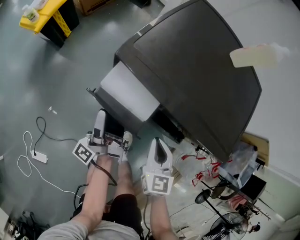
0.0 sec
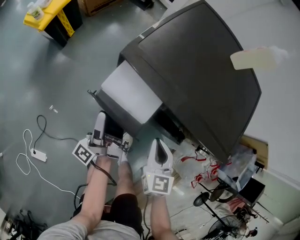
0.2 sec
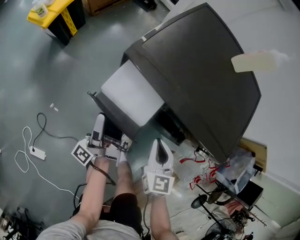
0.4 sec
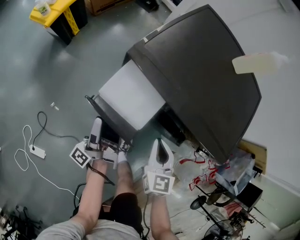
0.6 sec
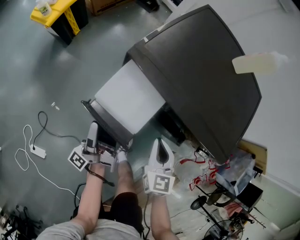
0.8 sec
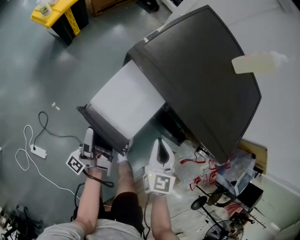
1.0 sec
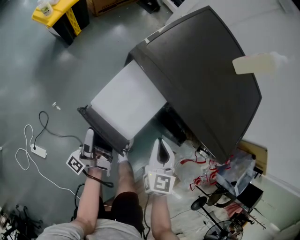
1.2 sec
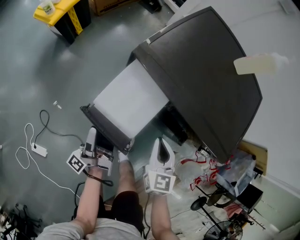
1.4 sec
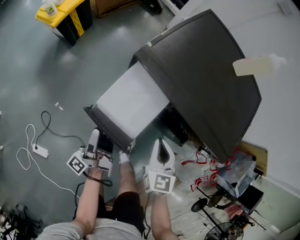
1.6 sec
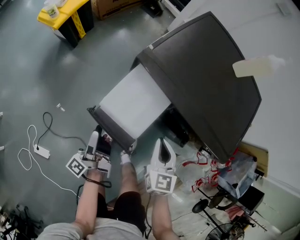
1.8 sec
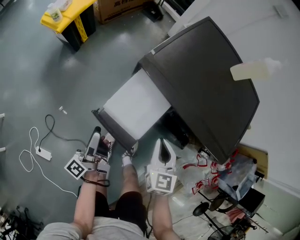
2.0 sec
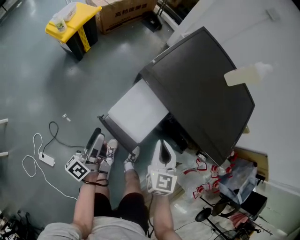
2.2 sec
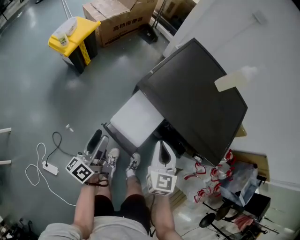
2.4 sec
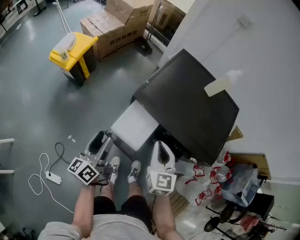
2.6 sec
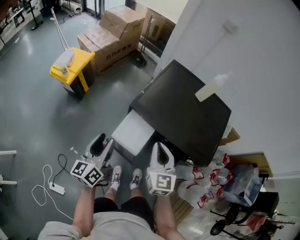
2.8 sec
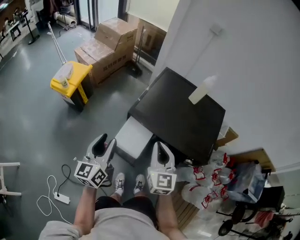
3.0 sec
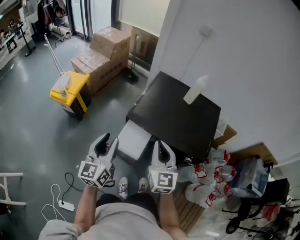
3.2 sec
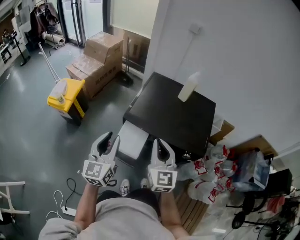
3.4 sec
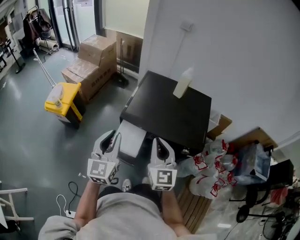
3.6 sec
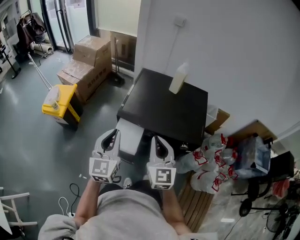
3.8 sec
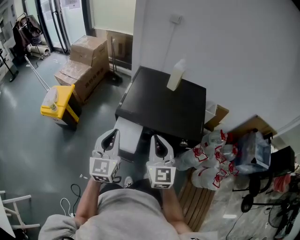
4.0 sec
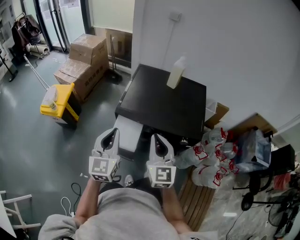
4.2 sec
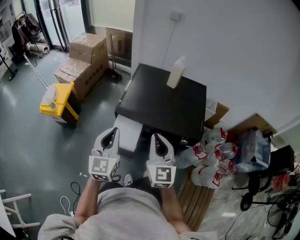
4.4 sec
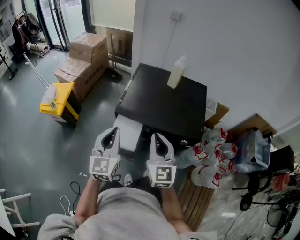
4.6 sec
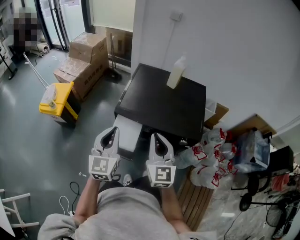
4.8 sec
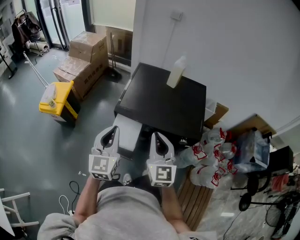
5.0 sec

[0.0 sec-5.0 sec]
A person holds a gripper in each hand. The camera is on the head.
0.0 sec to 1.6 sec: The left gripper moves backward and to the left, approximately 10 cm.
1.6 sec to 3.4 sec: The grippers both shift upward by some 30 cm. The left gripper twists approximately 80 degrees clockwise, seen from behind, and closes up. Meanwhile the right gripper rotates some 30 degrees.
3.4 sec to 5.0 sec: There are only small adjustments of the grippers.

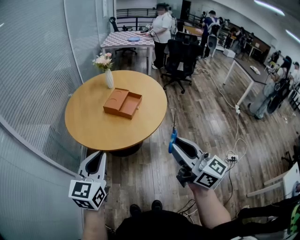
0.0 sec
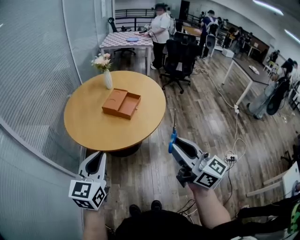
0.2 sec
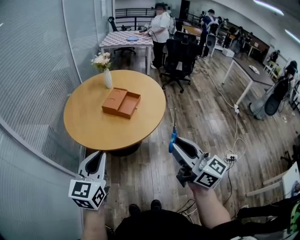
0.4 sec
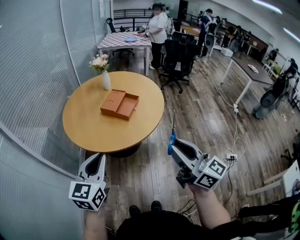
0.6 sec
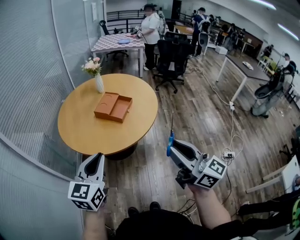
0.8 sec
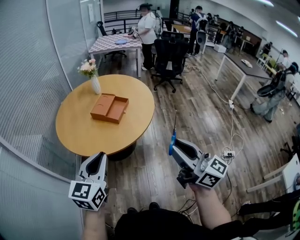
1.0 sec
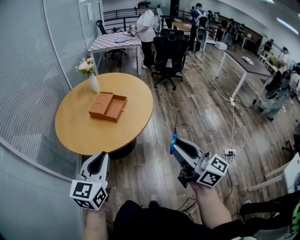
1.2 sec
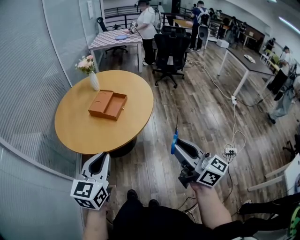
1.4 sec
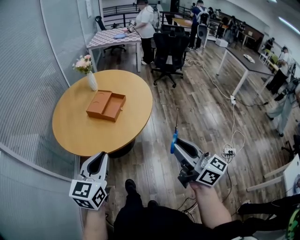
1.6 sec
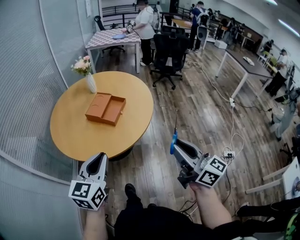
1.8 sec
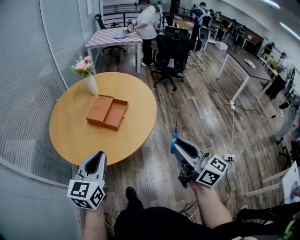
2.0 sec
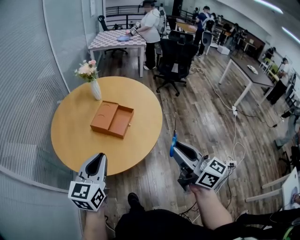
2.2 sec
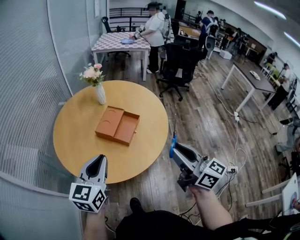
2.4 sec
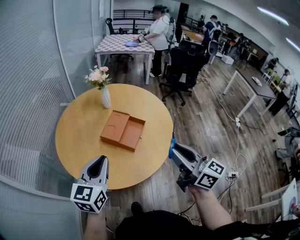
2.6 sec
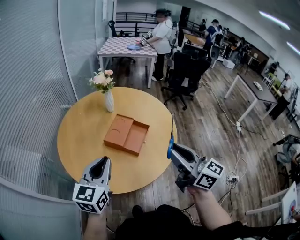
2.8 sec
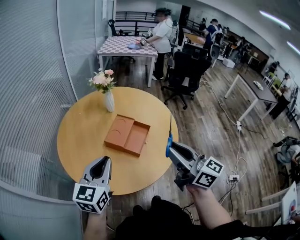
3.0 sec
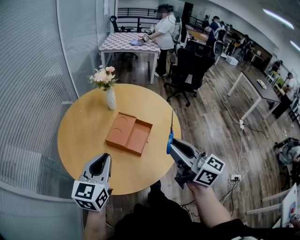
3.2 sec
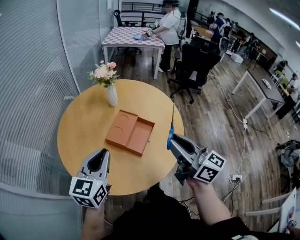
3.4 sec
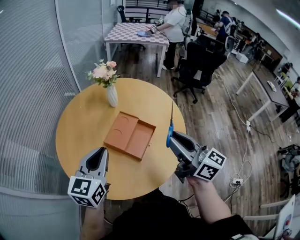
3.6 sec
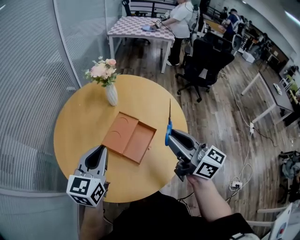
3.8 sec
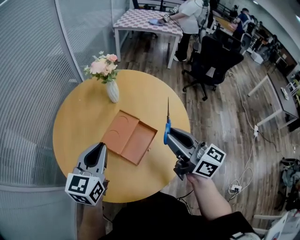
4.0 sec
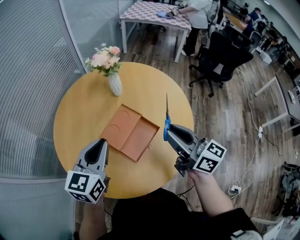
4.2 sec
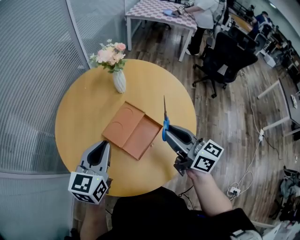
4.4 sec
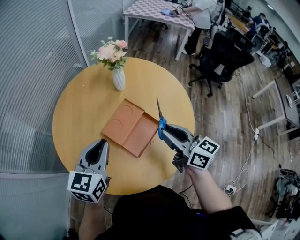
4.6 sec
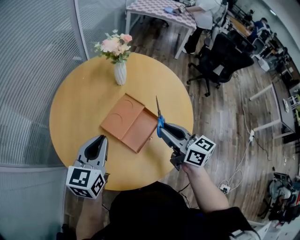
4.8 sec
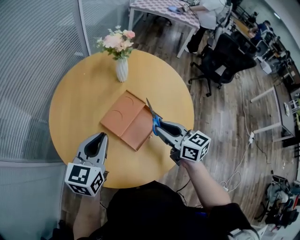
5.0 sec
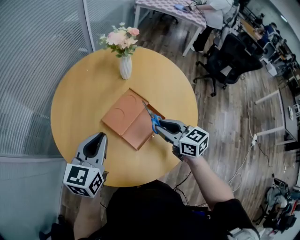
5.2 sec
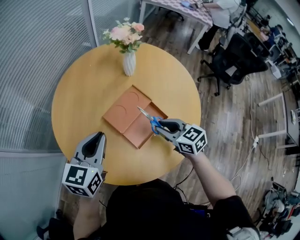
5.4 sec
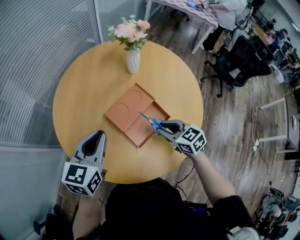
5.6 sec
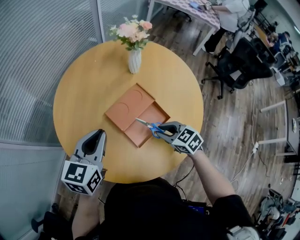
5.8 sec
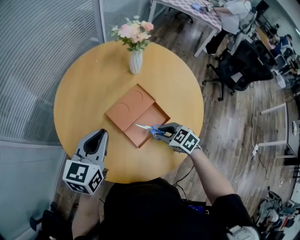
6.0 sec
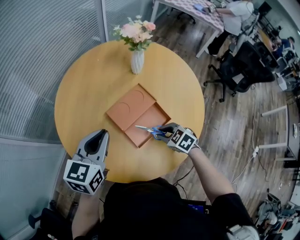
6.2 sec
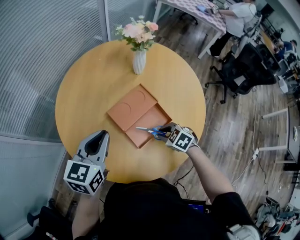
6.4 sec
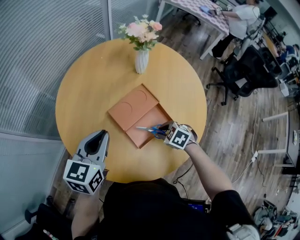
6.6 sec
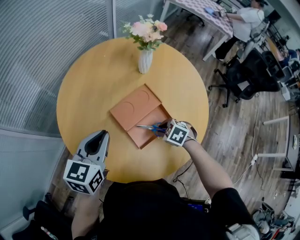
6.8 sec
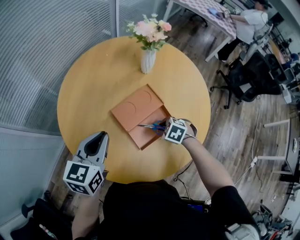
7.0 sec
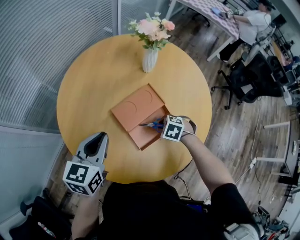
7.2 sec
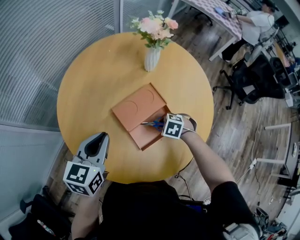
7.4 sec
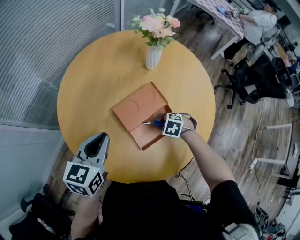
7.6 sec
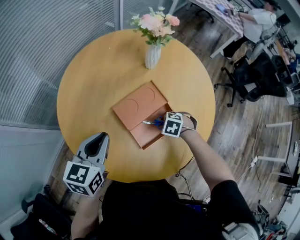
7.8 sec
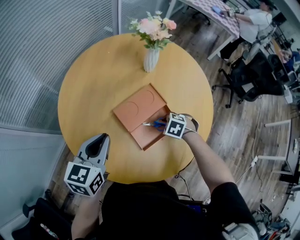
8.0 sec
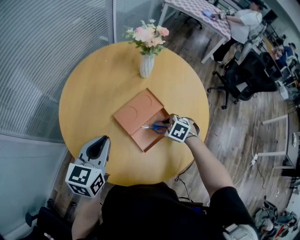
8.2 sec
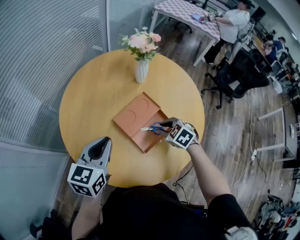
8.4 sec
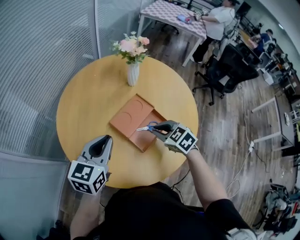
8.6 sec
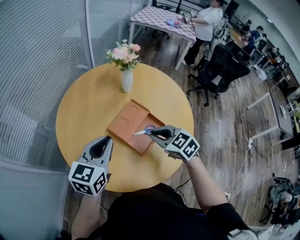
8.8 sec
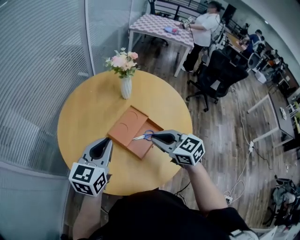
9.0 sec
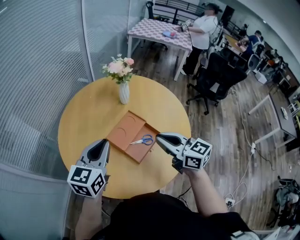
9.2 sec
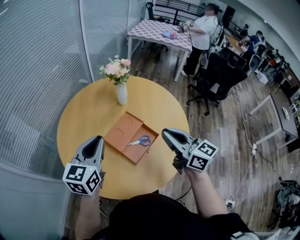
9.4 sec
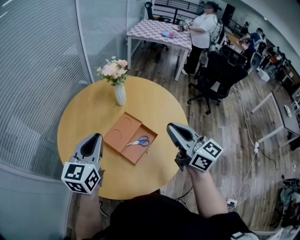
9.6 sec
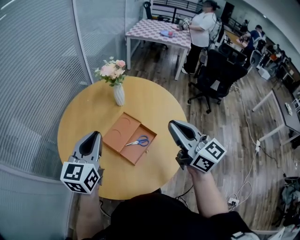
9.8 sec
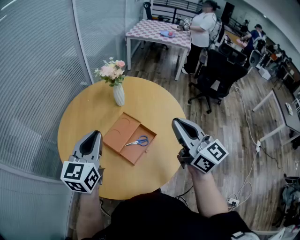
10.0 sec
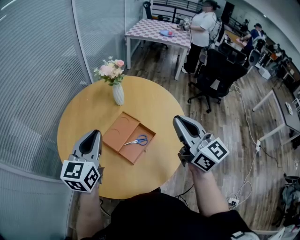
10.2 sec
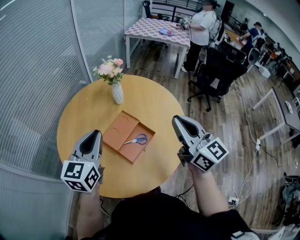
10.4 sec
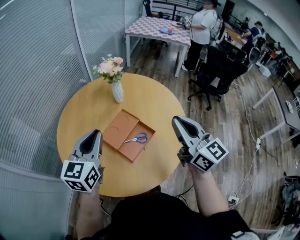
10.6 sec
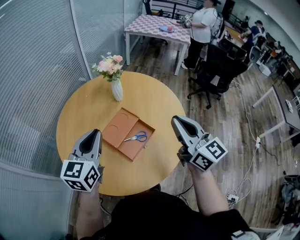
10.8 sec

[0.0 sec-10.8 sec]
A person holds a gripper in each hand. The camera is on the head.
0.0 sec to 1.6 sec: The grippers both shift to the right by about 10 cm.
1.6 sec to 3.0 sec: The grippers both shift forward and to the left by about 30 cm.
3.0 sec to 4.6 sec: The right gripper heads forward and downward, covering about 25 cm, and turns by roughly 20 degrees. The left gripper is displaced forward and to the right by some 15 cm.
4.6 sec to 6.2 sec: The right gripper shifts some 25 cm downward, and angles its fingers downward, by approximately 50 degrees.
6.2 sec to 7.8 sec: The right gripper heads downward, covering approximately 10 cm, and changes its angle by approximately 30 degrees.
7.8 sec to 9.2 sec: The left gripper travels upward by about 10 cm, and swivels some 20 degrees. Meanwhile the right gripper heads upward, covering approximately 35 cm, and tips its fingers upward by some 70 degrees.
9.2 sec to 10.8 sec: The right gripper is displaced to the right and upward by roughly 15 cm, and swivels about 20 degrees, while the left gripper moves about 5 cm.

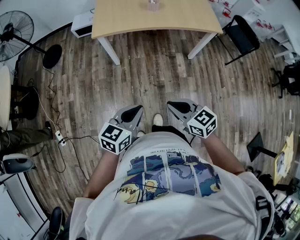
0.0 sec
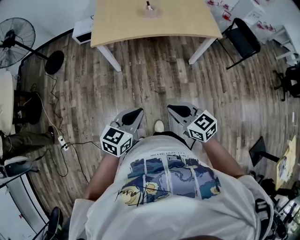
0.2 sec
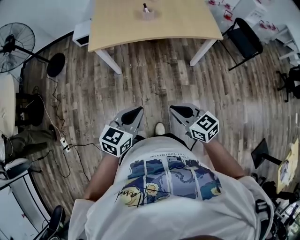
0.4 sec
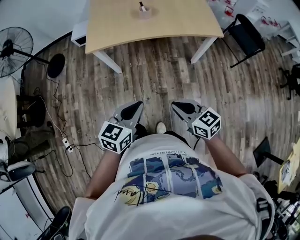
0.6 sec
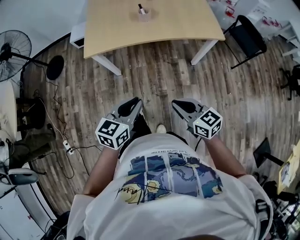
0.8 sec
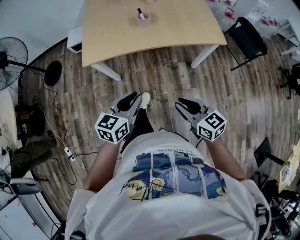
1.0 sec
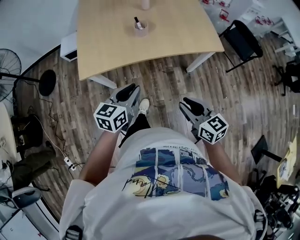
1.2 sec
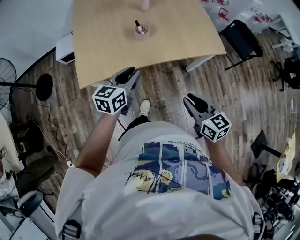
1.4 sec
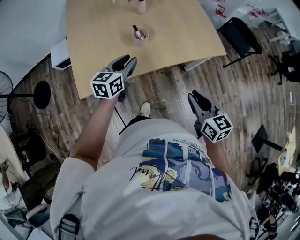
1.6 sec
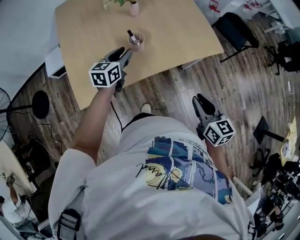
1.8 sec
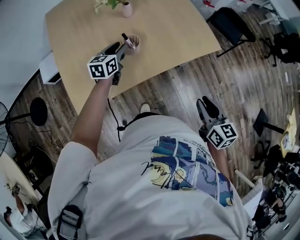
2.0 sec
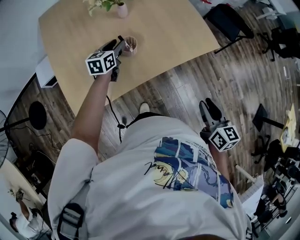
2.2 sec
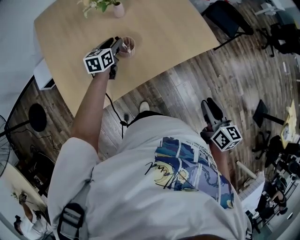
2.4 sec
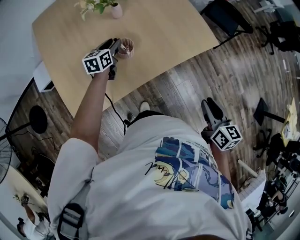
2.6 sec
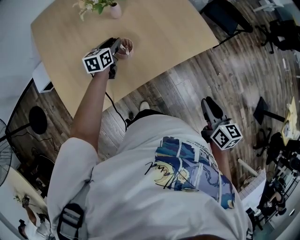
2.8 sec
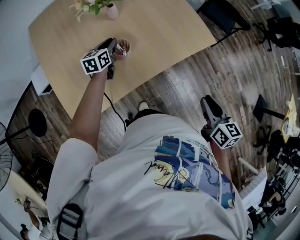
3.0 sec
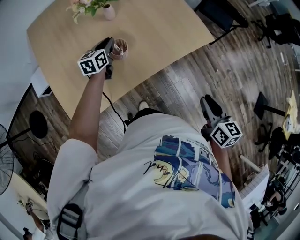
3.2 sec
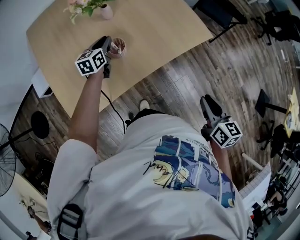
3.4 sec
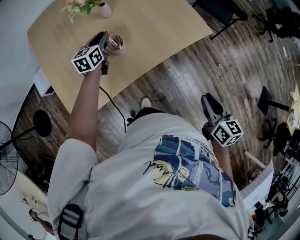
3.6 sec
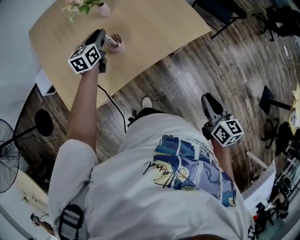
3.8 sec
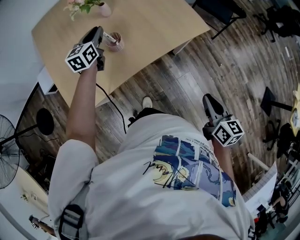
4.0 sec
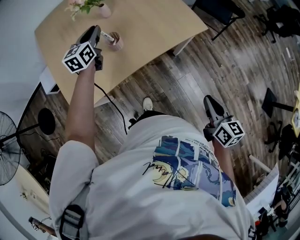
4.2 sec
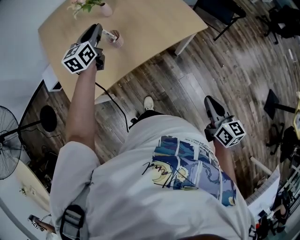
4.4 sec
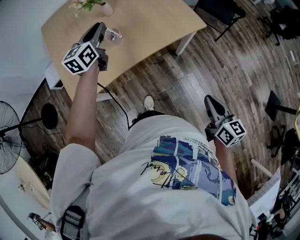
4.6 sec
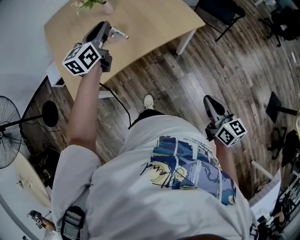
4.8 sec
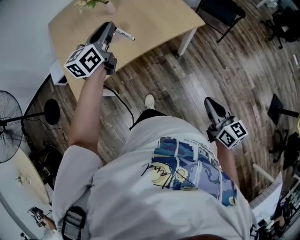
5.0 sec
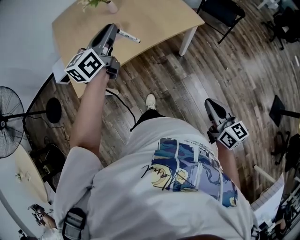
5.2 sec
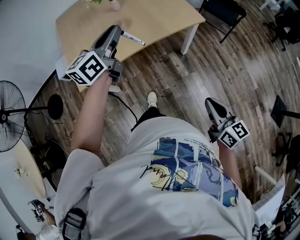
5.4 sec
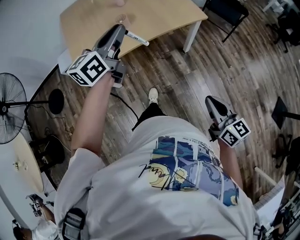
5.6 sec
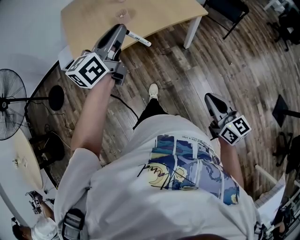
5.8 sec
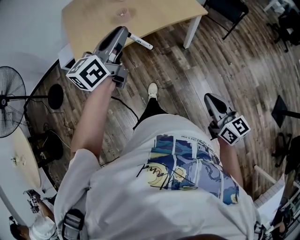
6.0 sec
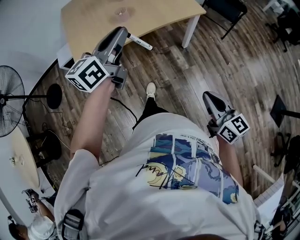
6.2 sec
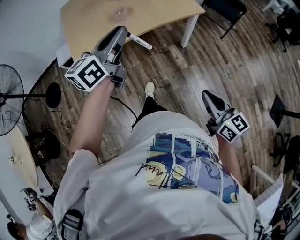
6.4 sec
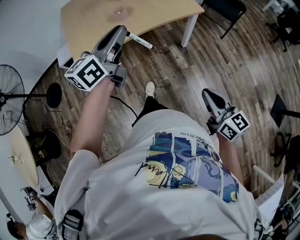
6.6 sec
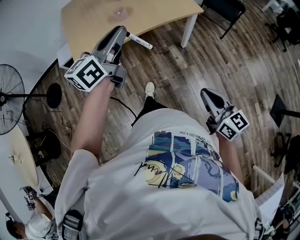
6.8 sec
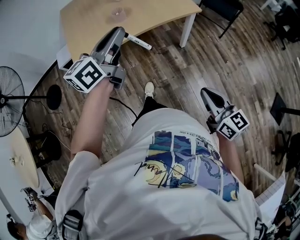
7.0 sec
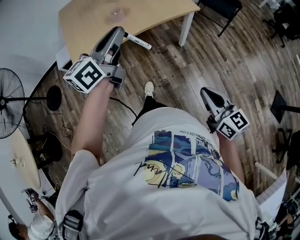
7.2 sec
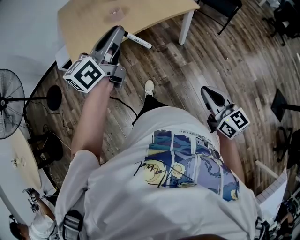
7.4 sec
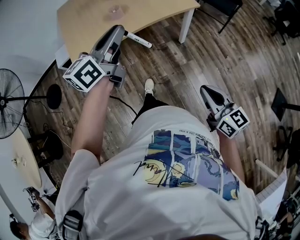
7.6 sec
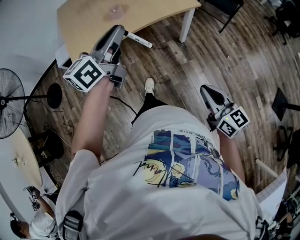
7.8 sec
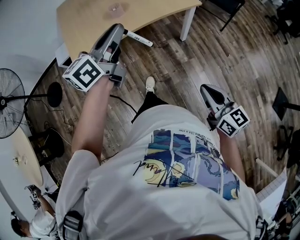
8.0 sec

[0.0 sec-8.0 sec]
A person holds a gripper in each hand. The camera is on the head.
0.0 sec to 1.6 sec: The left gripper heads forward, covering about 60 cm, and opens. The right gripper goes some 35 cm forward, and swivels approximately 40 degrees.
1.6 sec to 3.2 sec: The left gripper moves forward, roughly 20 cm. Meanwhile the right gripper moves to the right, approximately 5 cm, and changes its angle by roughly 30 degrees.
3.2 sec to 4.8 sec: The right gripper shifts roughly 15 cm backward and to the right. The left gripper goes roughly 30 cm upward, backward and to the right.
4.8 sec to 6.4 sec: The left gripper travels backward by approximately 25 cm; the right gripper goes about 15 cm backward.
6.4 sec to 8.0 sec: There are only small adjustments of the grippers.
